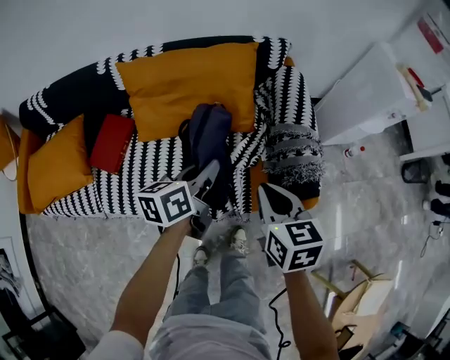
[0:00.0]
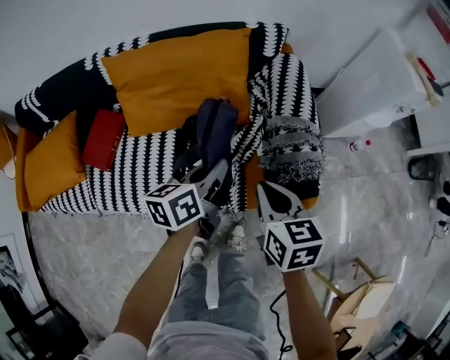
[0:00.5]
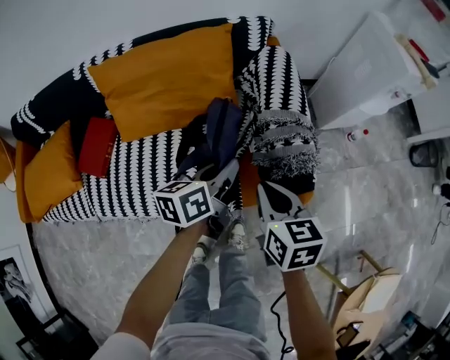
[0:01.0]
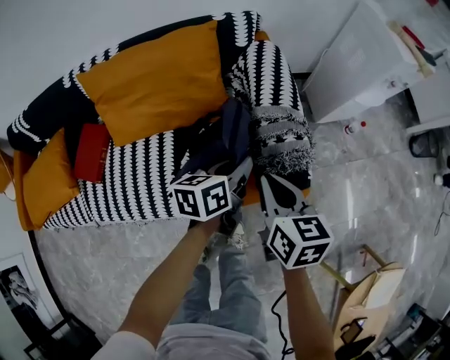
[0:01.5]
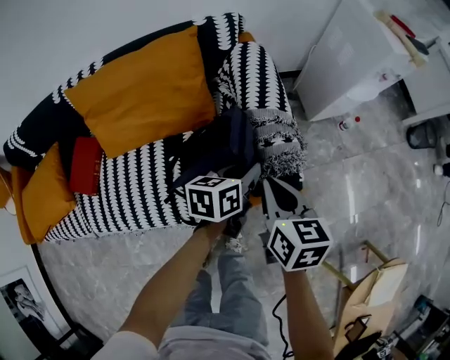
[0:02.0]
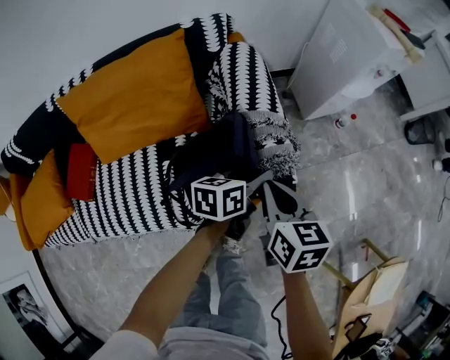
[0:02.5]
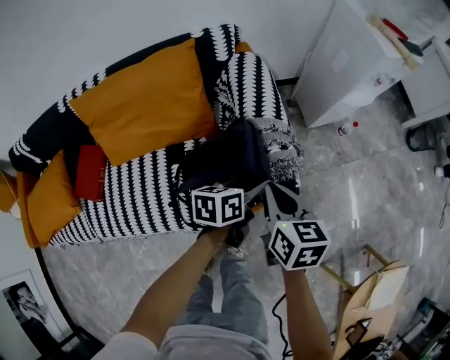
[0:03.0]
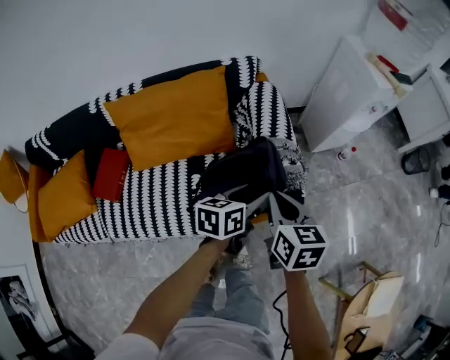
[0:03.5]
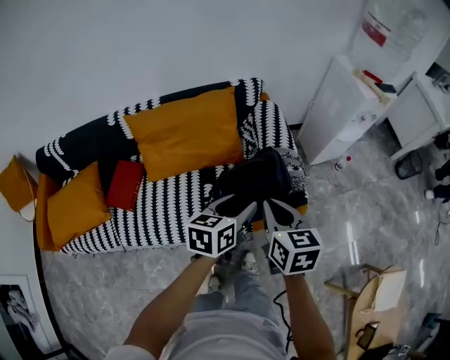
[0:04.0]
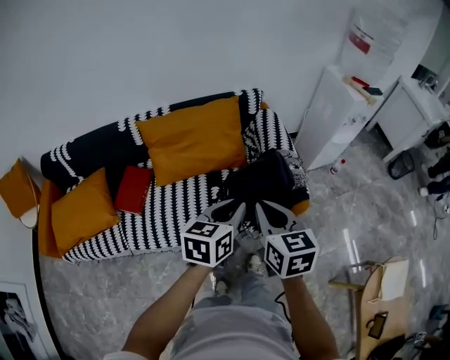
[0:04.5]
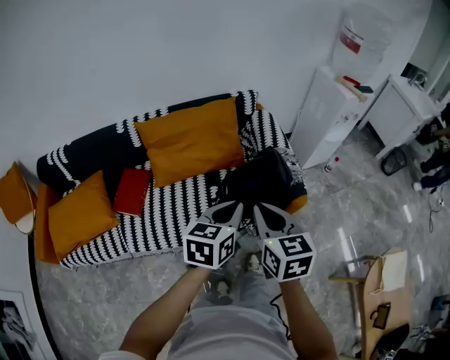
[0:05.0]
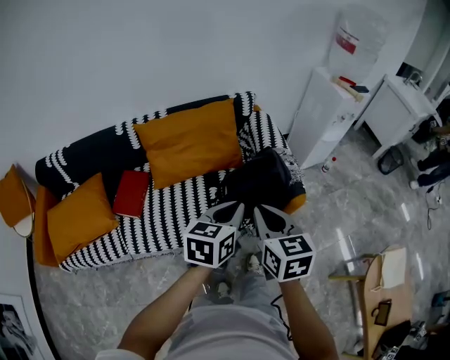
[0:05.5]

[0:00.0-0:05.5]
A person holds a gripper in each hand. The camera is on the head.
0:00.0 to 0:02.0: The left gripper heads to the right and downward, covering approximately 25 cm. Meanwhile the right gripper shifts about 15 cm to the right and downward.
0:02.0 to 0:03.5: The right gripper moves upward, some 10 cm. The left gripper is displaced upward and backward by approximately 10 cm, and opens its fingers.
0:03.5 to 0:05.5: The left gripper moves backward, upward and to the left, some 30 cm, turns by roughly 20 degrees, and closes; the right gripper goes approximately 25 cm backward, to the left and upward.

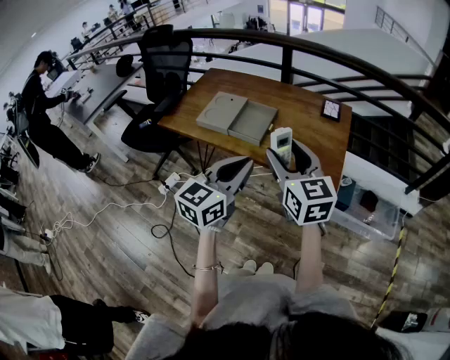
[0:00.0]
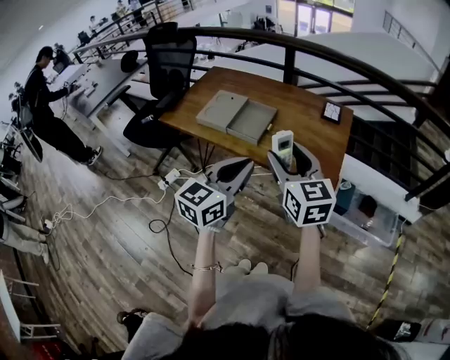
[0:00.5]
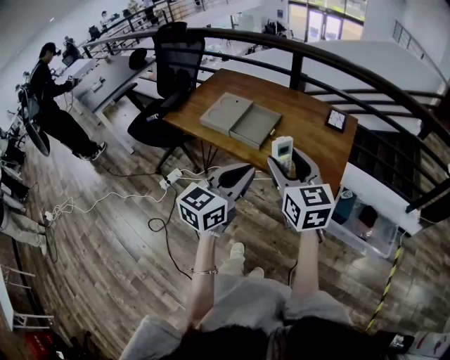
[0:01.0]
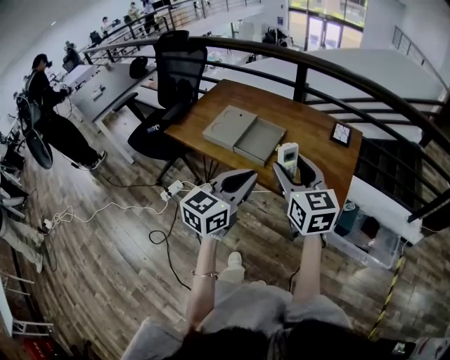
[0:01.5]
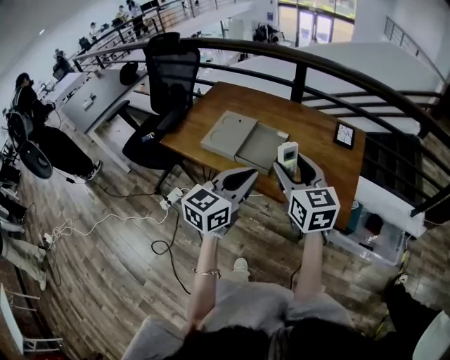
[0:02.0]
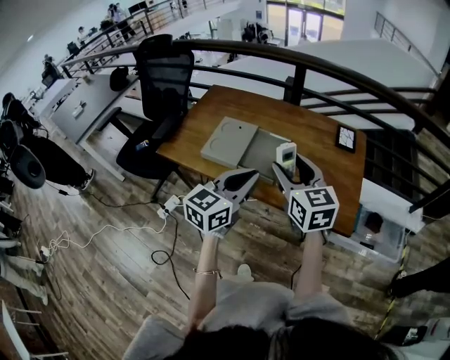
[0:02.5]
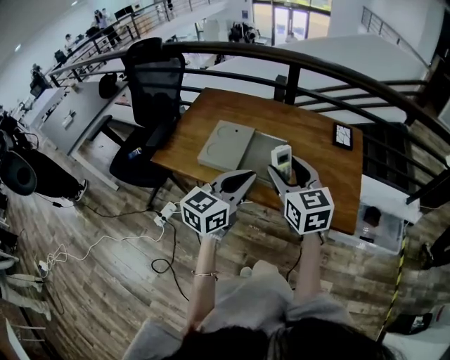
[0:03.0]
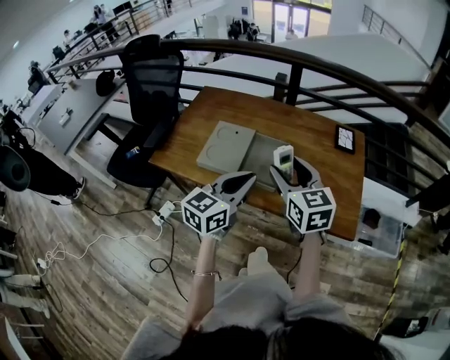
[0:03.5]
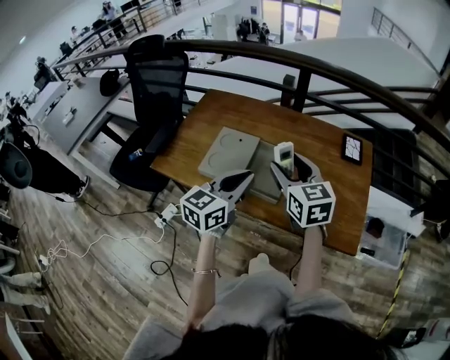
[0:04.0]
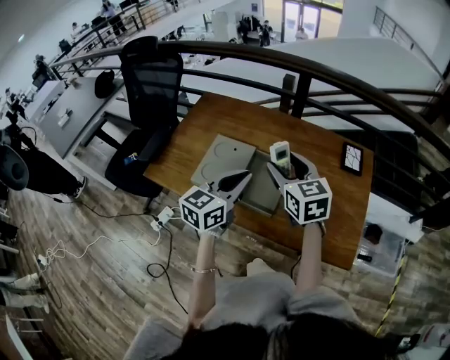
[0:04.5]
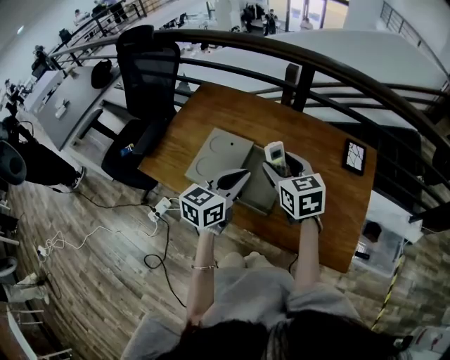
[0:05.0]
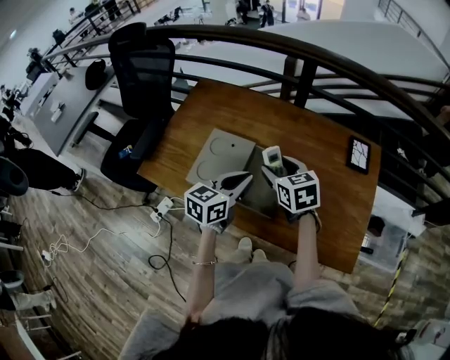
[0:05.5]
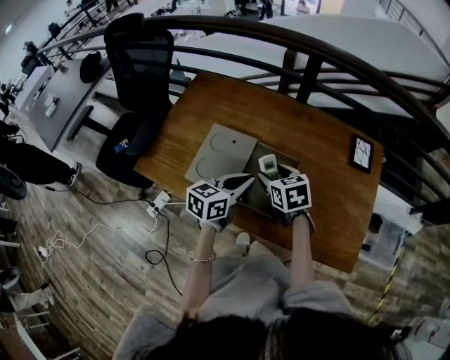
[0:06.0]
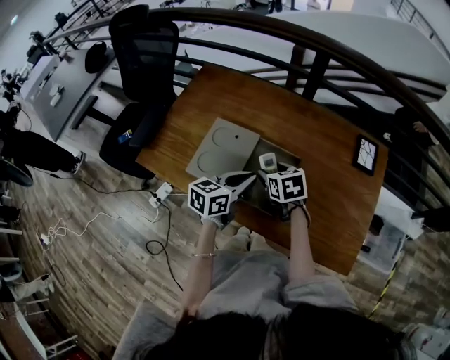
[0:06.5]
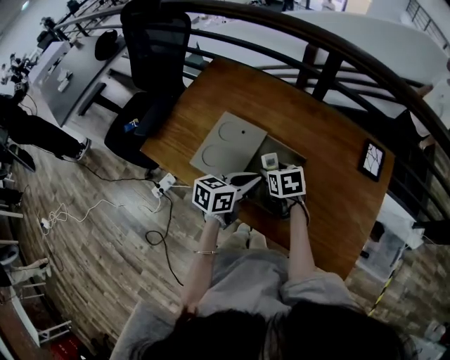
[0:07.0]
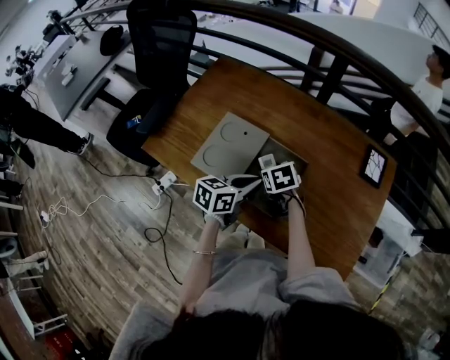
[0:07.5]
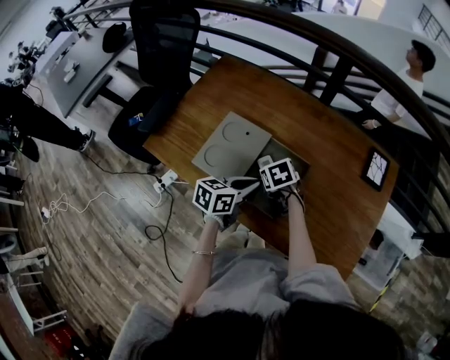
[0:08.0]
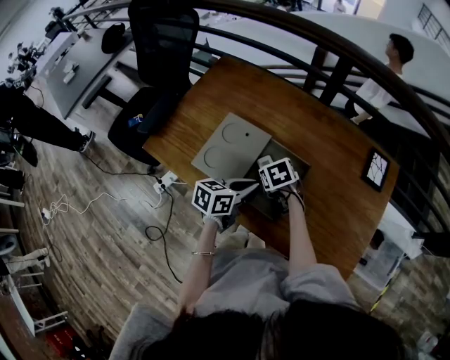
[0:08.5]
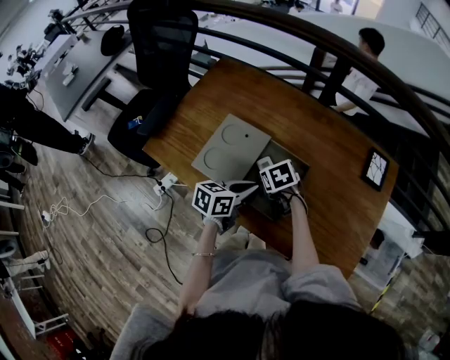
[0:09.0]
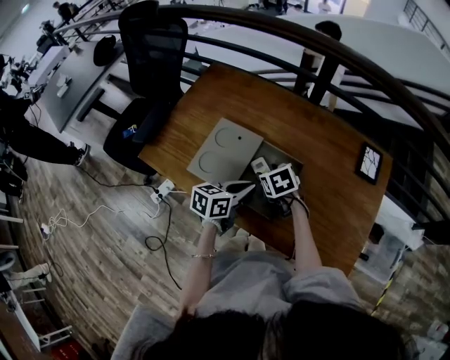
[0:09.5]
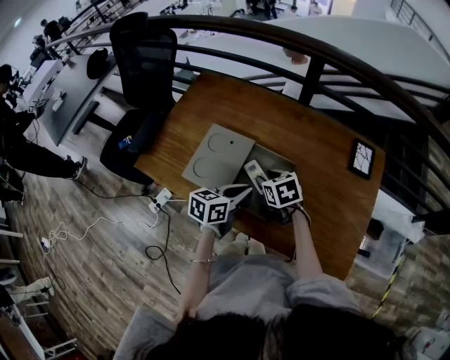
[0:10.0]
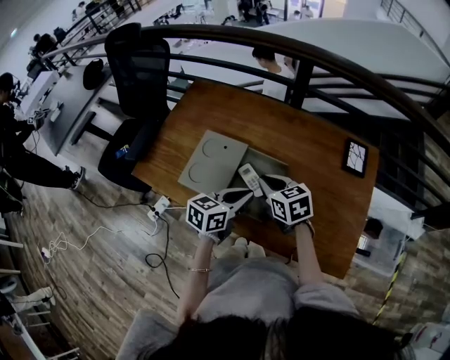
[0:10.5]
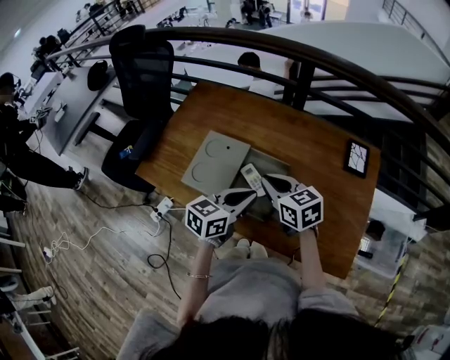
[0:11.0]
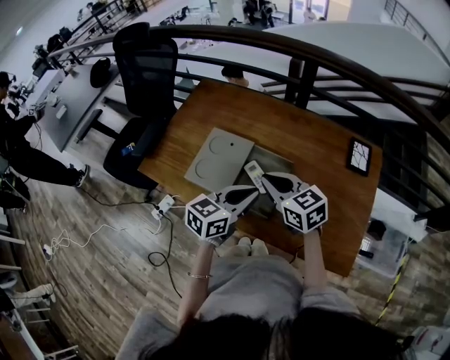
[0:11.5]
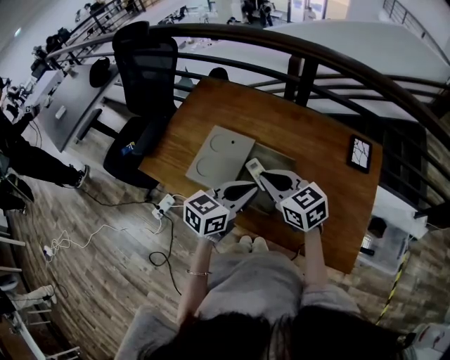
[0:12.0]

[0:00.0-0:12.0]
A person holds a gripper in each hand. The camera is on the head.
0:00.0 to 0:02.0: Both grippers move forward, about 10 cm.
0:02.0 to 0:04.0: The grippers both shift forward and to the left by approximately 15 cm.
0:04.0 to 0:06.0: The grippers both shift downward and forward by some 20 cm. The right gripper turns by approximately 30 degrees.
0:06.0 to 0:08.0: The right gripper shifts roughly 10 cm downward, and swivels approximately 20 degrees.
0:08.0 to 0:10.0: The right gripper moves upward, approximately 5 cm.
0:10.0 to 0:12.0: The left gripper goes some 10 cm upward. Meanwhile the right gripper is displaced upward and backward by about 15 cm, swivels roughly 30 degrees, and closes.

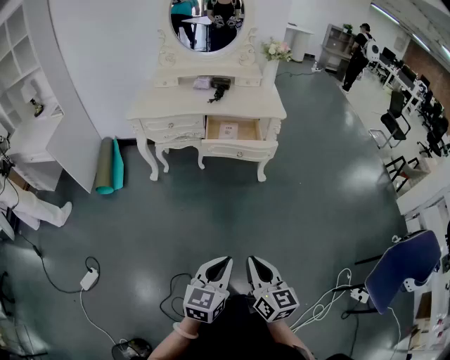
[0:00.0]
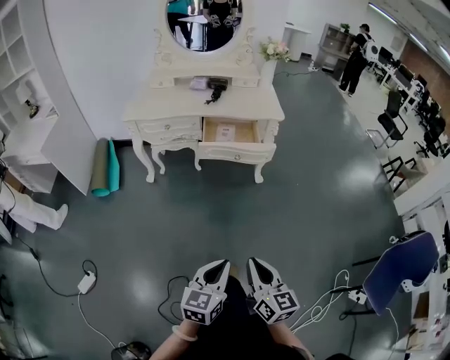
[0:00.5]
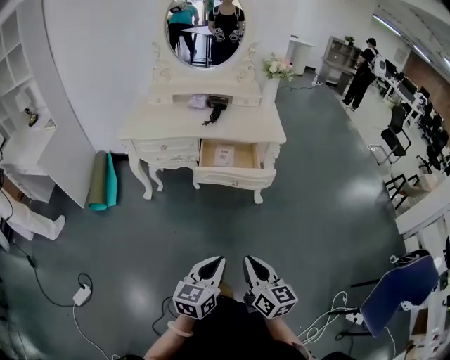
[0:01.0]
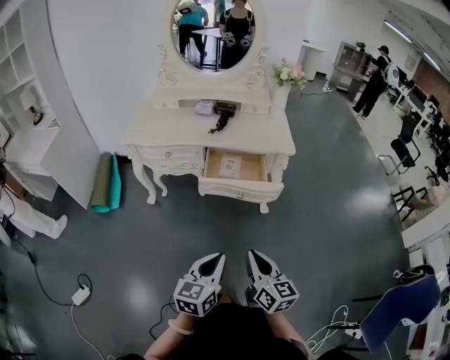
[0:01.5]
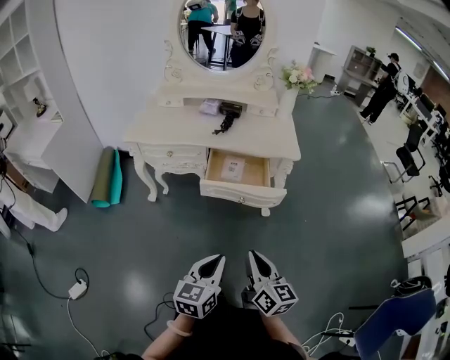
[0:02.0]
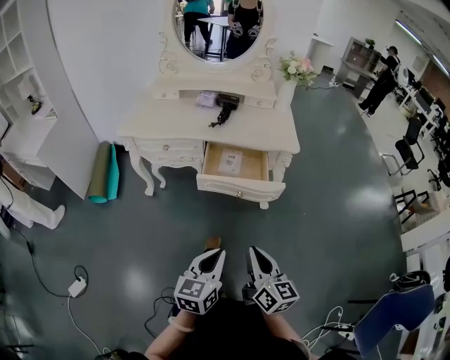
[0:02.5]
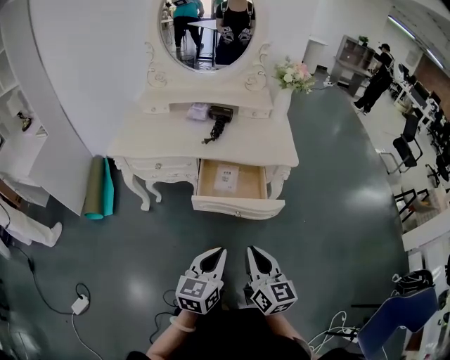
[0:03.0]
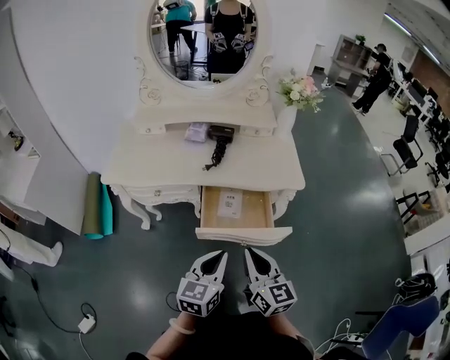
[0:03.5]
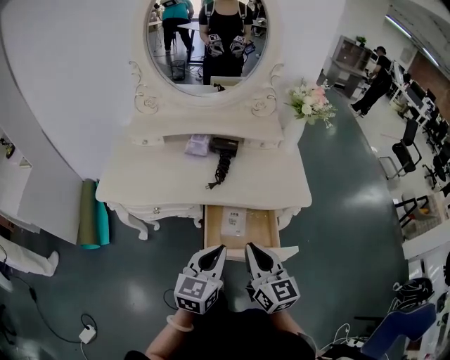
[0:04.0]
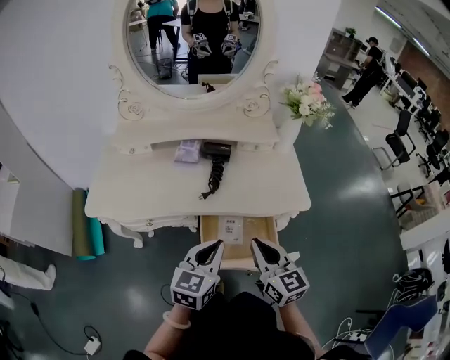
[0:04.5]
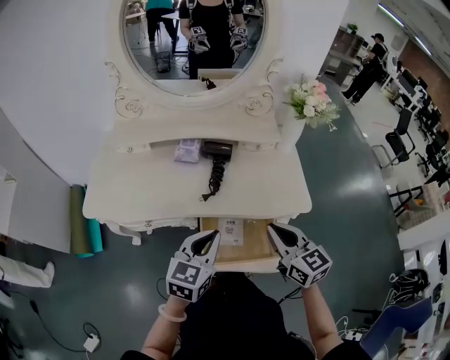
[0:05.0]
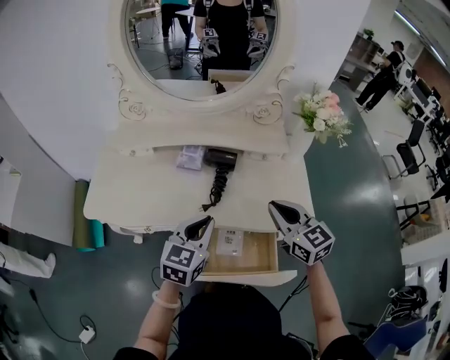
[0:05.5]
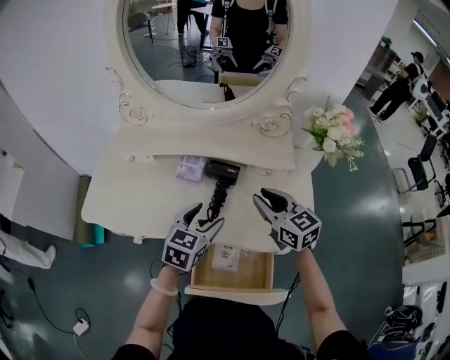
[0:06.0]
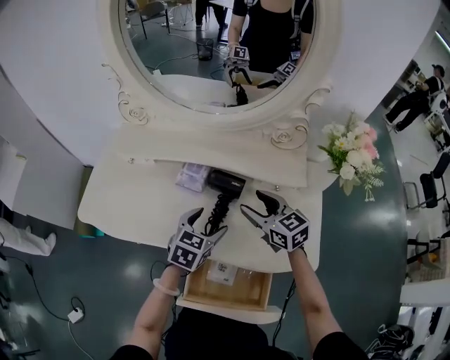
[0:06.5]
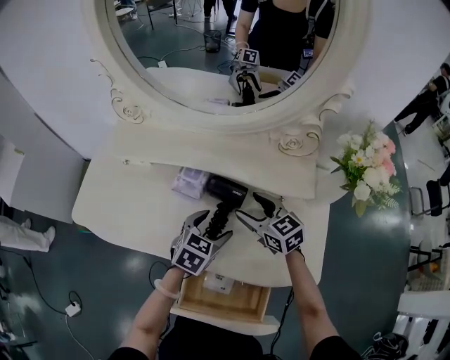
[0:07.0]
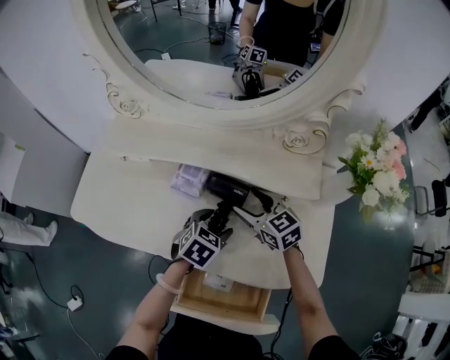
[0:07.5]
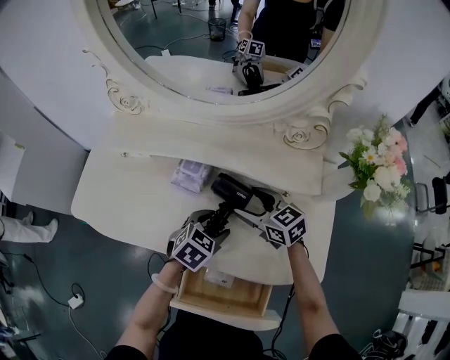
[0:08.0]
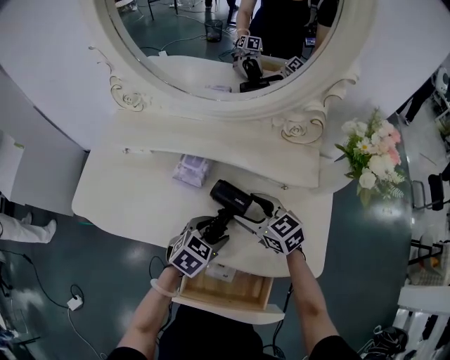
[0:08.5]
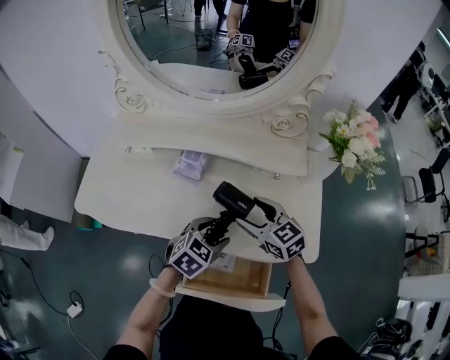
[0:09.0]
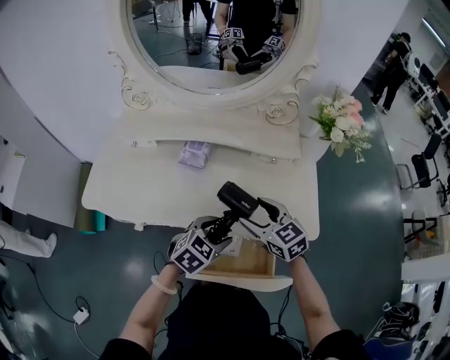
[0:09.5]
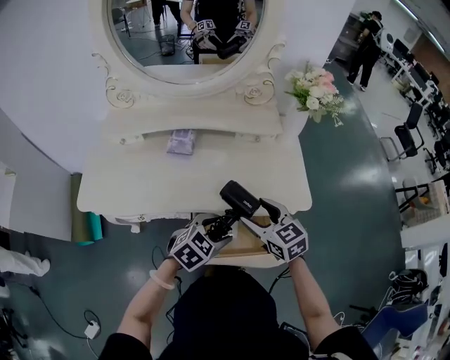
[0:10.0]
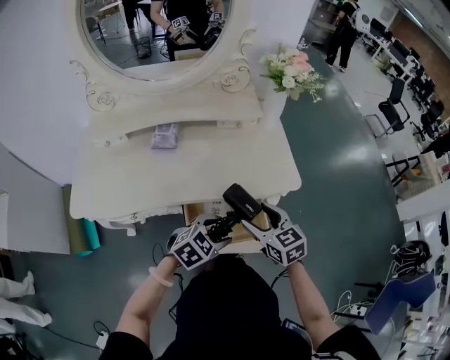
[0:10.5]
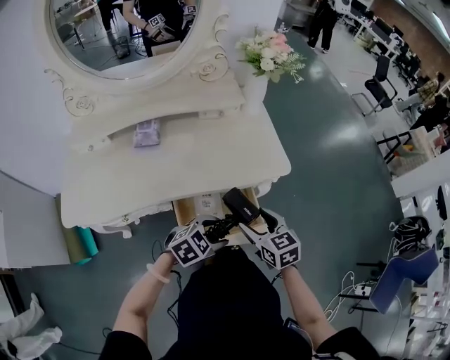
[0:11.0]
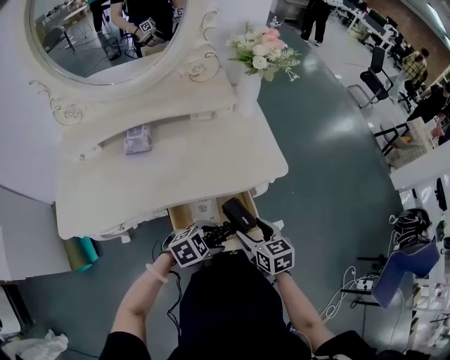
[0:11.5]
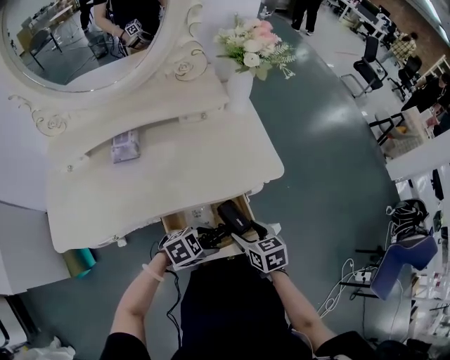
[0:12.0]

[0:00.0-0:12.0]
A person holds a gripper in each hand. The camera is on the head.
0:00.0 to 0:02.0: Both grippers travel together forward, roughly 25 cm.
0:02.0 to 0:04.0: The two grippers go some 30 cm forward.
0:04.0 to 0:06.0: Both grippers move forward, some 30 cm. The left gripper opens up. Meanwhile the right gripper turns by roughly 20 degrees.
0:06.0 to 0:08.0: Both grippers move downward and forward, roughly 15 cm. The left gripper rotates about 20 degrees. The right gripper changes its angle by roughly 20 degrees, and opens up.
0:08.0 to 0:10.0: The right gripper ends up about 25 cm from where it was, and changes its angle by some 20 degrees, while the left gripper shifts by some 20 cm, and changes its angle by roughly 30 degrees.
0:10.0 to 0:12.0: Both grippers move downward, about 10 cm. The left gripper changes its angle by approximately 40 degrees. Meanwhile the right gripper swivels approximately 40 degrees.
